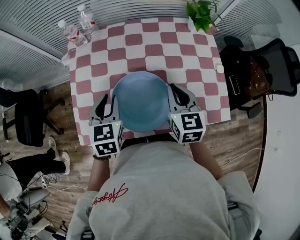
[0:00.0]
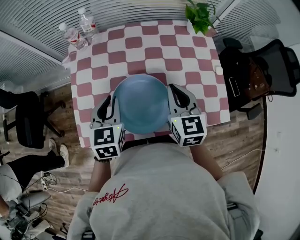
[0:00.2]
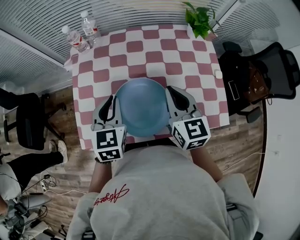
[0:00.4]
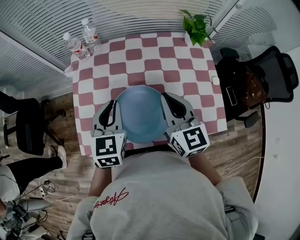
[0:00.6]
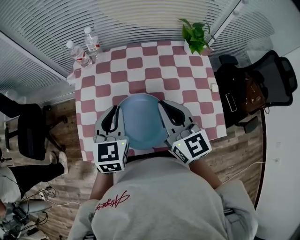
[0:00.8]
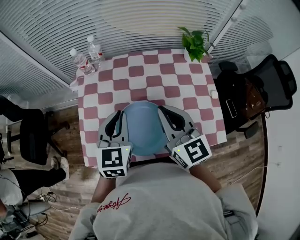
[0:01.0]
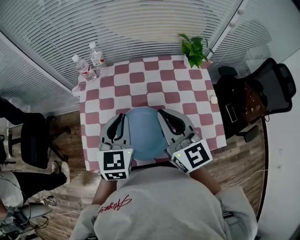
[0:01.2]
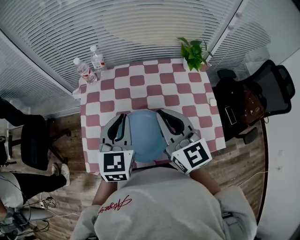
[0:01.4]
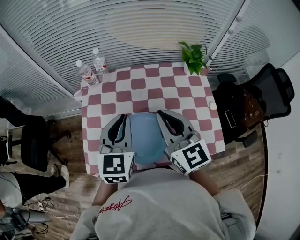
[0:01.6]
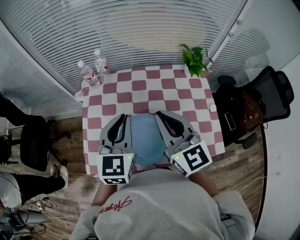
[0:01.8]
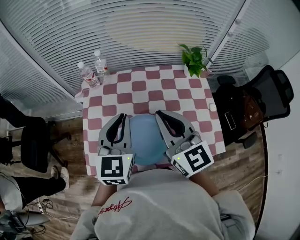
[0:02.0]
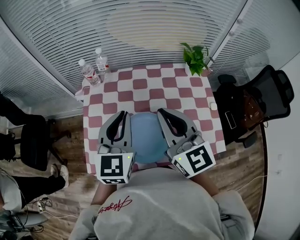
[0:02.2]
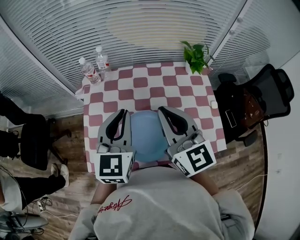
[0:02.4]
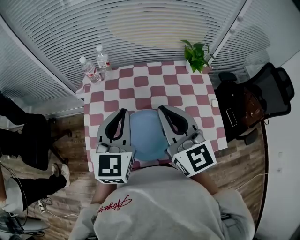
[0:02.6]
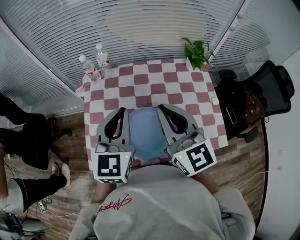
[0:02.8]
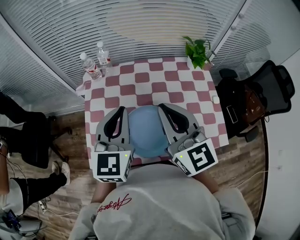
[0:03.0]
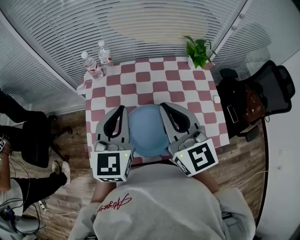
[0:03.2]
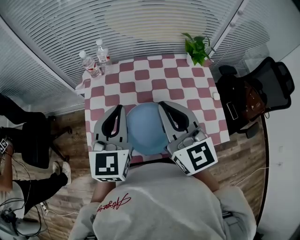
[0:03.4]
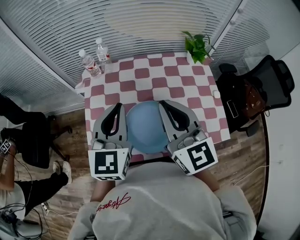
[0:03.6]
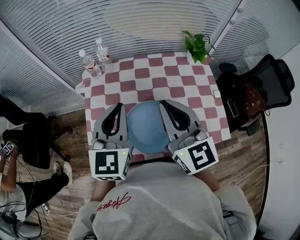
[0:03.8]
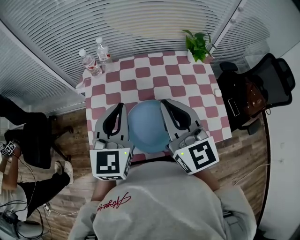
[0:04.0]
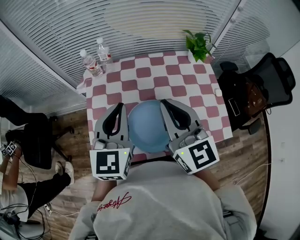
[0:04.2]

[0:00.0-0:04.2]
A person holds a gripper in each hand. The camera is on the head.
0:00.0 to 0:01.4: The left gripper travels upward and to the right by roughly 15 cm; the right gripper travels upward by some 15 cm, and turns by roughly 30 degrees.
0:01.4 to 0:02.8: The left gripper goes roughly 5 cm upward; the right gripper shifts by some 5 cm.
0:02.8 to 0:04.2: The grippers stay close to where they were, moving slightly.

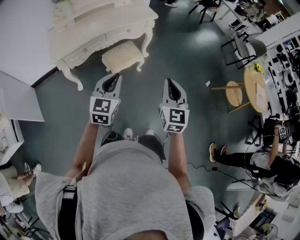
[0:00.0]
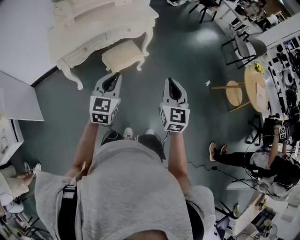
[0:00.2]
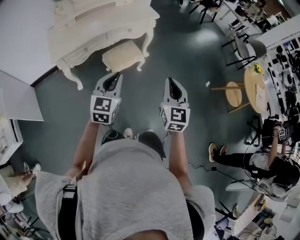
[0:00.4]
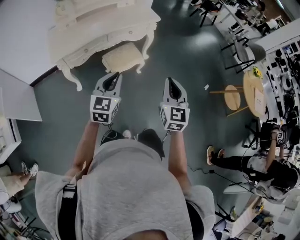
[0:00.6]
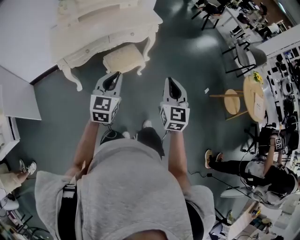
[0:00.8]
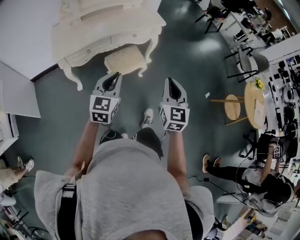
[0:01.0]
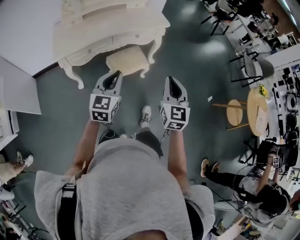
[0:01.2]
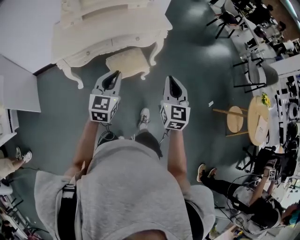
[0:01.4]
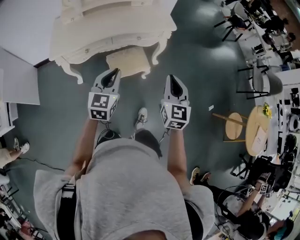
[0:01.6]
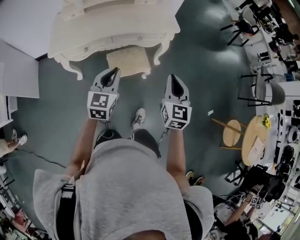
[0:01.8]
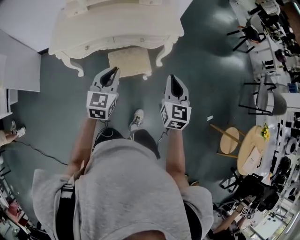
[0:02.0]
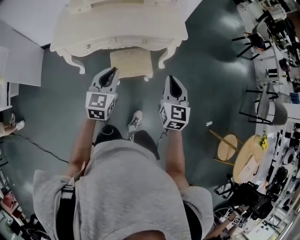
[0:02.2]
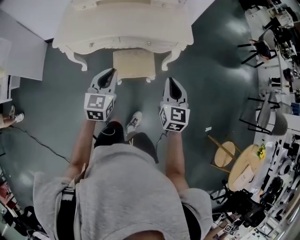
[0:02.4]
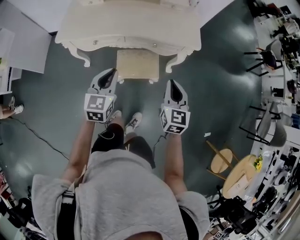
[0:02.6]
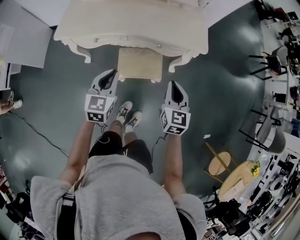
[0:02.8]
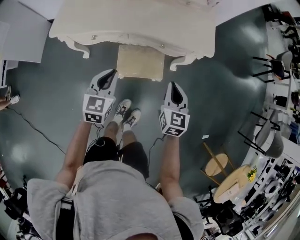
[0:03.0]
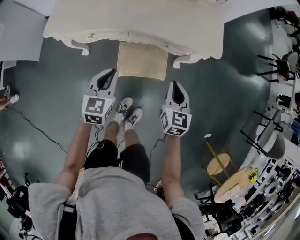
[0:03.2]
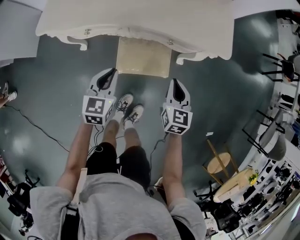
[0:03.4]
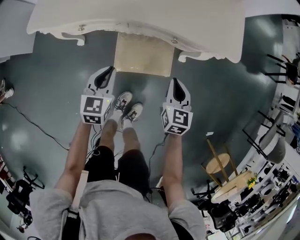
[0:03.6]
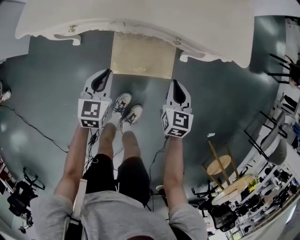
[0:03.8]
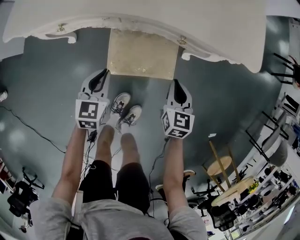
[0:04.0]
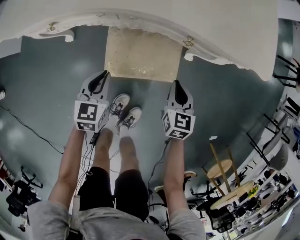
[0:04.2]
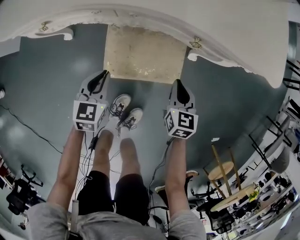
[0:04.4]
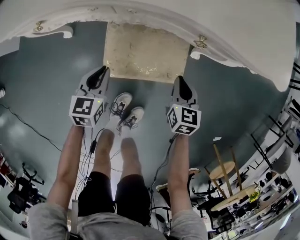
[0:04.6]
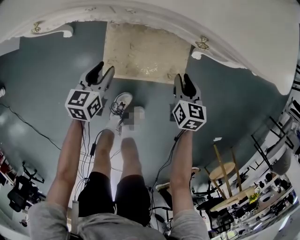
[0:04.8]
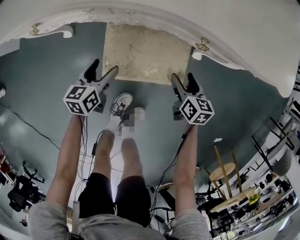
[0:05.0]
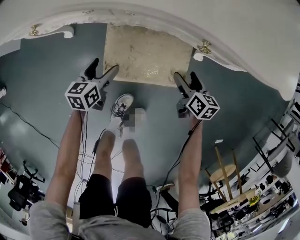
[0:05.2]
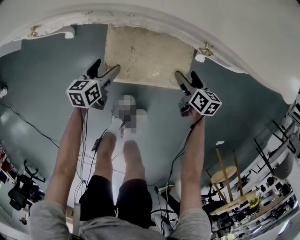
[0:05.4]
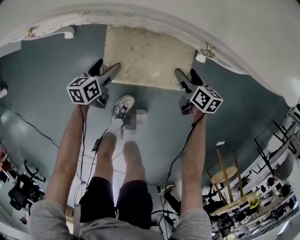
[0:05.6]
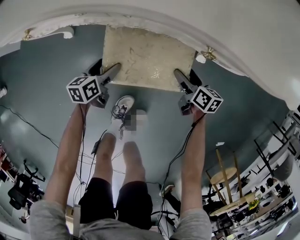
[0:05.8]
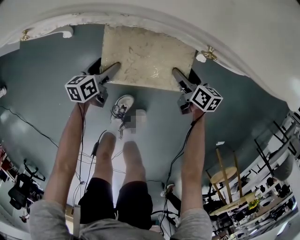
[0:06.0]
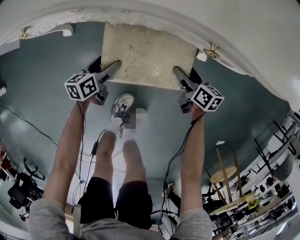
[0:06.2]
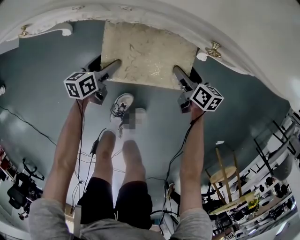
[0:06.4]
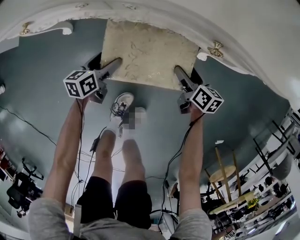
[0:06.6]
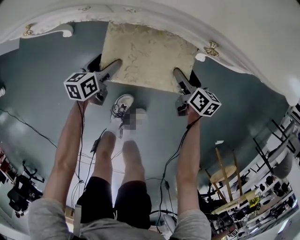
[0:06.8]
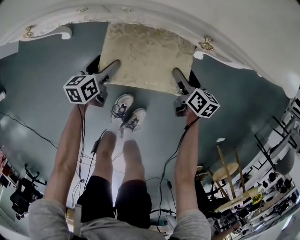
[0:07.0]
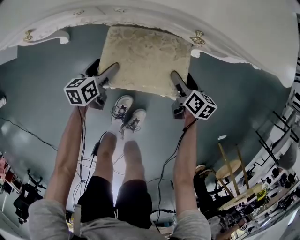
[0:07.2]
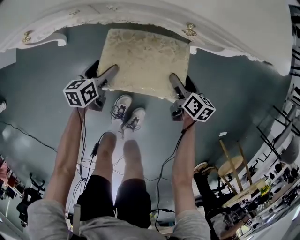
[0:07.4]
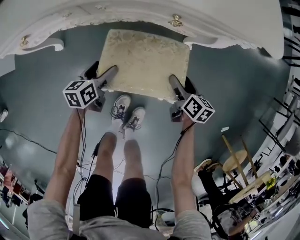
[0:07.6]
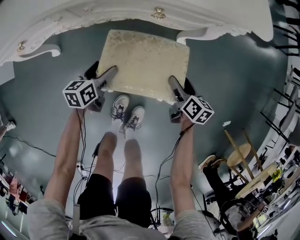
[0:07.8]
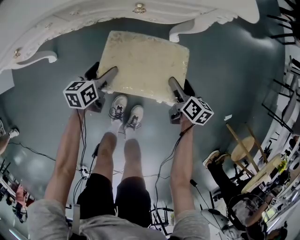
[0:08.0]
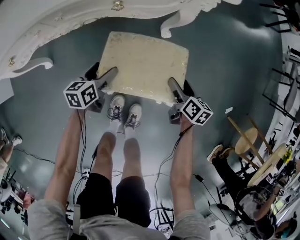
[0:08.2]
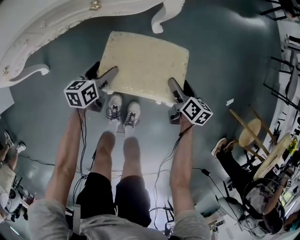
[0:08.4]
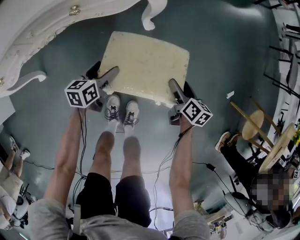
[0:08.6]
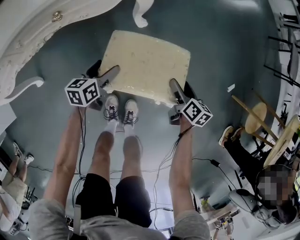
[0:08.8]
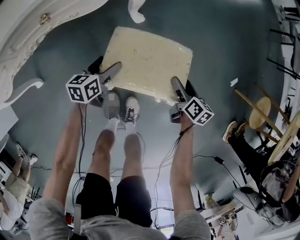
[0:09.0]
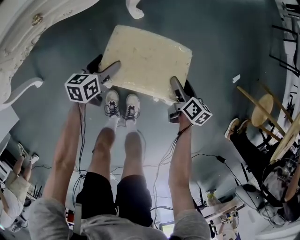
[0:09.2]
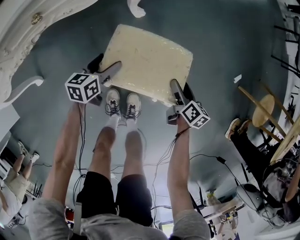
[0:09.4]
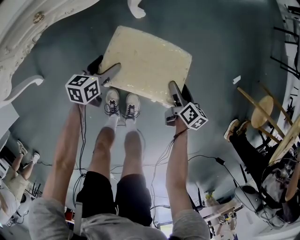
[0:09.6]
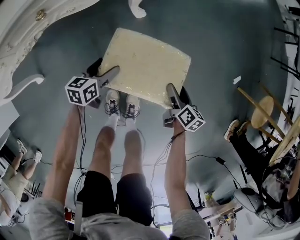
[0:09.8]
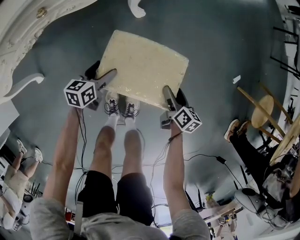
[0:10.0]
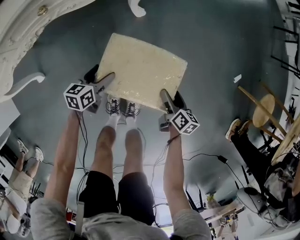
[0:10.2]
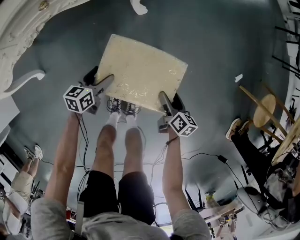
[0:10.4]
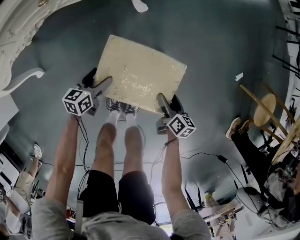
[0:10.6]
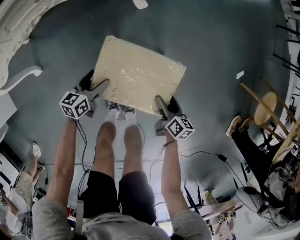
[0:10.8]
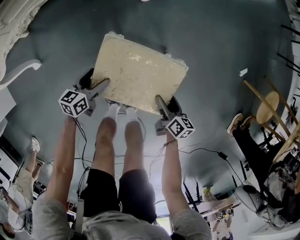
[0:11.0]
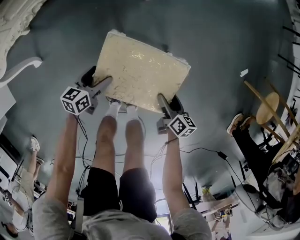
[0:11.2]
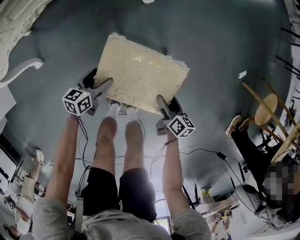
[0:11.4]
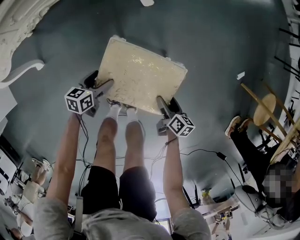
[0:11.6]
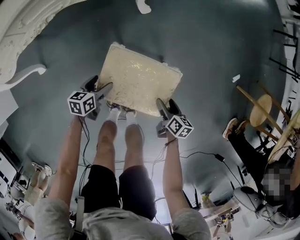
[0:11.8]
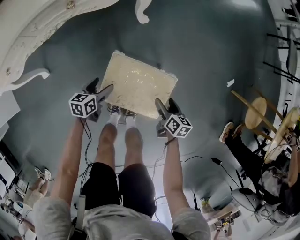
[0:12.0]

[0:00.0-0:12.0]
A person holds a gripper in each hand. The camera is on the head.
0:00.0 to 0:01.6: The two grippers go roughly 20 cm forward.
0:01.6 to 0:03.0: Both grippers move forward and downward, approximately 25 cm. The left gripper rotates approximately 20 degrees, while the right gripper rotates approximately 20 degrees.
0:03.0 to 0:04.4: Both grippers move downward, roughly 35 cm.
0:04.4 to 0:06.0: The left gripper heads downward, covering some 15 cm, changes its angle by approximately 40 degrees, and opens, while the right gripper heads downward and forward, covering roughly 15 cm, rotates some 40 degrees, and opens.
0:06.0 to 0:07.6: The right gripper goes roughly 15 cm backward, upward and to the right, and changes its angle by some 20 degrees; the left gripper is displaced upward and to the right by roughly 10 cm.
0:07.6 to 0:09.0: The left gripper changes place by about 25 cm, and rotates some 30 degrees. The right gripper ends up roughly 30 cm from where it was, and turns by approximately 30 degrees.
0:09.0 to 0:10.4: The grippers both shift backward by roughly 10 cm.
0:10.4 to 0:12.0: The right gripper moves about 5 cm. Meanwhile the left gripper shifts about 5 cm backward.

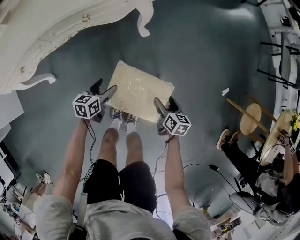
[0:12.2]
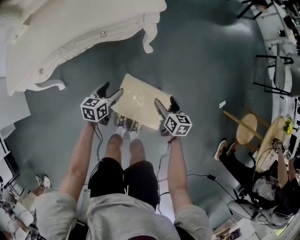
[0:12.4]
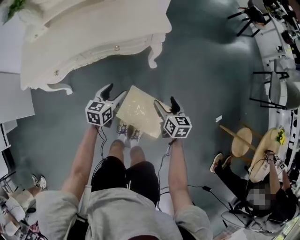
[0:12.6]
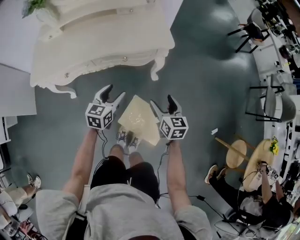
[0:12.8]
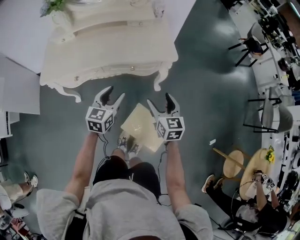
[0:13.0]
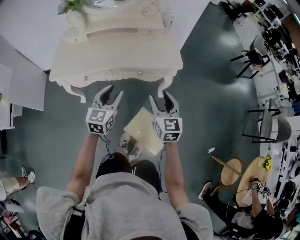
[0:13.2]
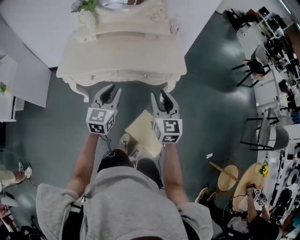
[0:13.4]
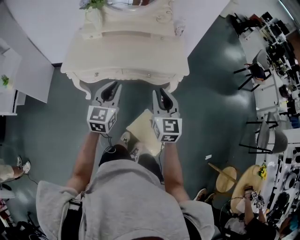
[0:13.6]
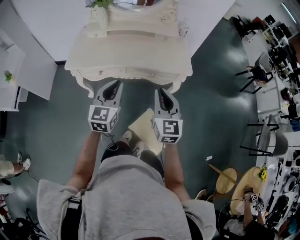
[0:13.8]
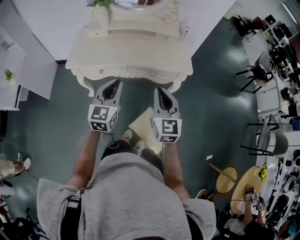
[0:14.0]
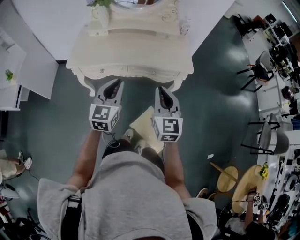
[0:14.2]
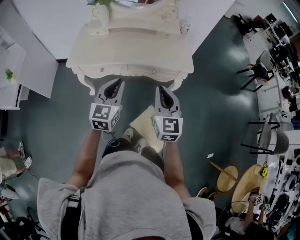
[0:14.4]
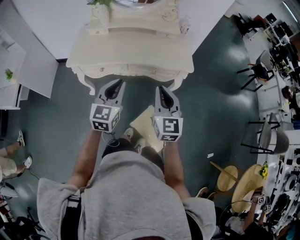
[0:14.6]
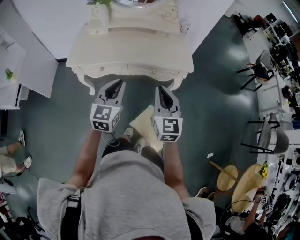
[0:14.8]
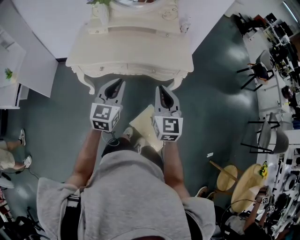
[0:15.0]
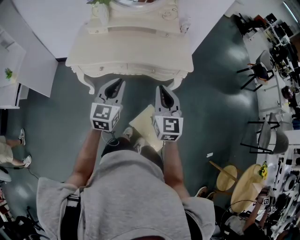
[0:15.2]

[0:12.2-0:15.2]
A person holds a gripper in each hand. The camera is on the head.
0:12.2 to 0:13.8: Both grippers move upward, about 60 cm. The left gripper angles its fingers upward, by some 30 degrees, and closes up, while the right gripper tips its fingers upward by roughly 40 degrees, and closes.
0:13.8 to 0:15.2: There are only small adjustments of the grippers.

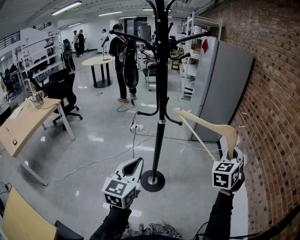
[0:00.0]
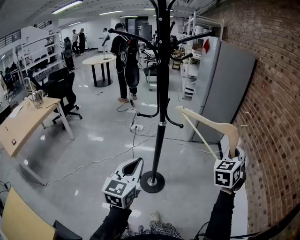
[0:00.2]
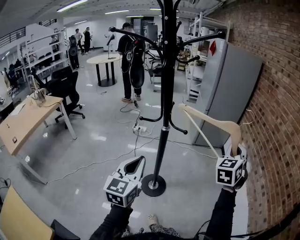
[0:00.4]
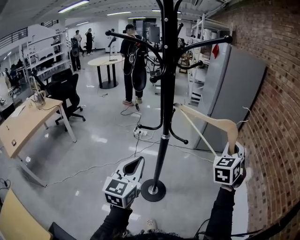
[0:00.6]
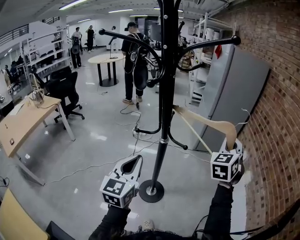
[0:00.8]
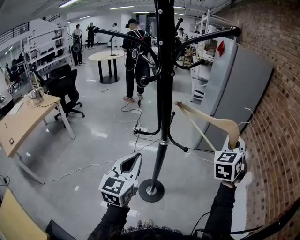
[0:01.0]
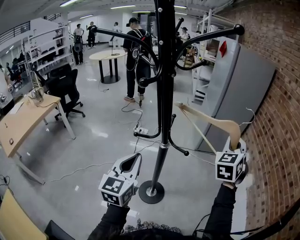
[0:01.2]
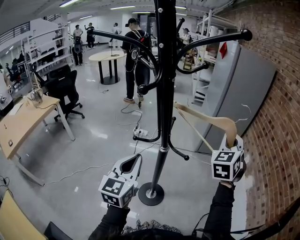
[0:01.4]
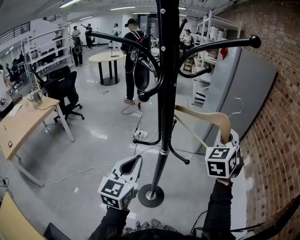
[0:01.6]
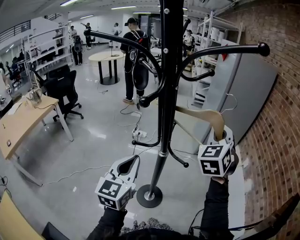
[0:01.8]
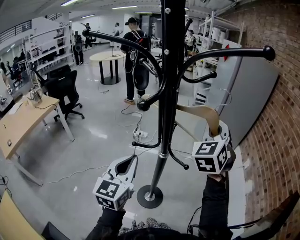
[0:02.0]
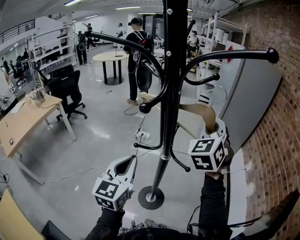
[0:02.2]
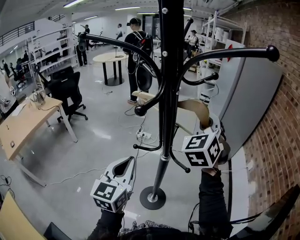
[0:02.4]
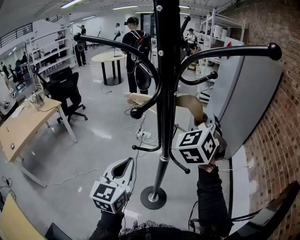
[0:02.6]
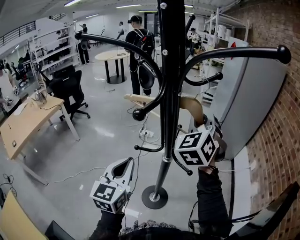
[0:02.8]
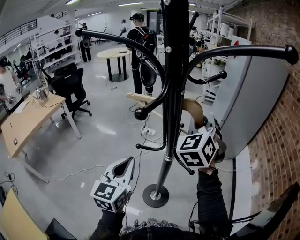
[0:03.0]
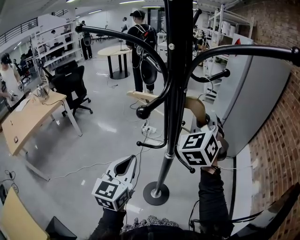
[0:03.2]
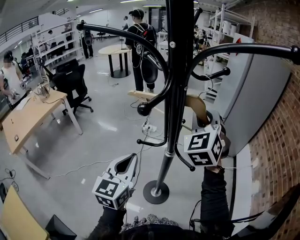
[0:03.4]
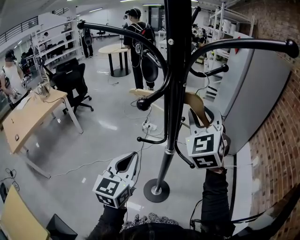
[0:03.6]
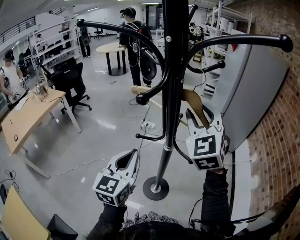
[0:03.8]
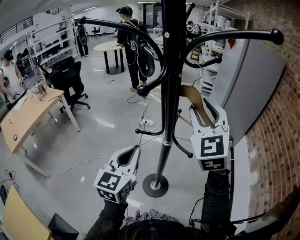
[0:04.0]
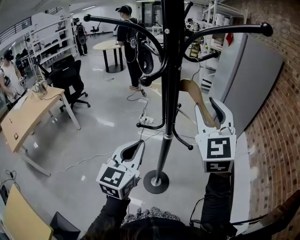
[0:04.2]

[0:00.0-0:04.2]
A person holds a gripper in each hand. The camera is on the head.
0:00.0 to 0:01.4: The right gripper moves forward and to the left, roughly 25 cm. The left gripper goes roughly 20 cm forward.
0:01.4 to 0:02.8: The right gripper moves to the left, about 20 cm, and changes its angle by about 20 degrees.
0:02.8 to 0:04.2: The right gripper travels backward by some 10 cm, changes its angle by some 20 degrees, and opens its fingers. The left gripper ends up approximately 5 cm from where it was.
